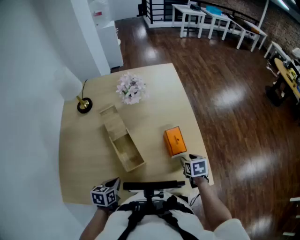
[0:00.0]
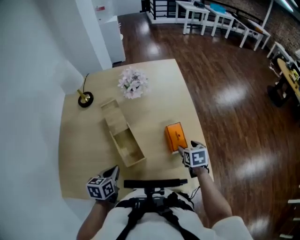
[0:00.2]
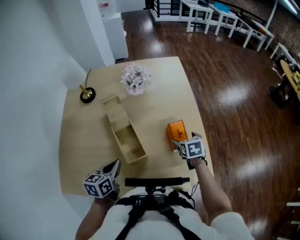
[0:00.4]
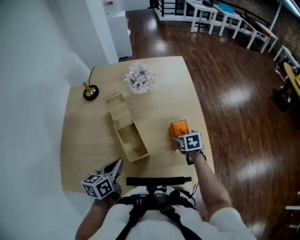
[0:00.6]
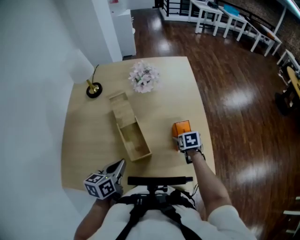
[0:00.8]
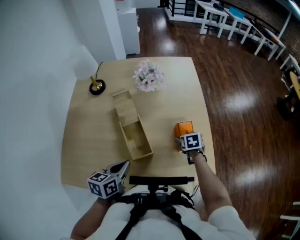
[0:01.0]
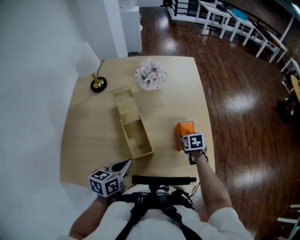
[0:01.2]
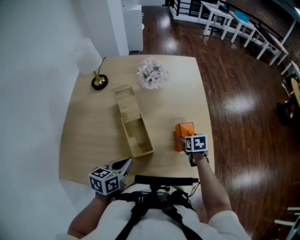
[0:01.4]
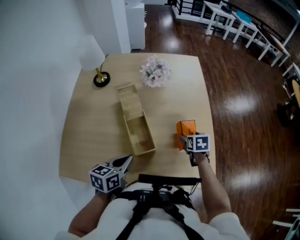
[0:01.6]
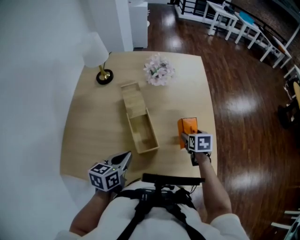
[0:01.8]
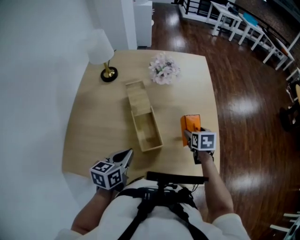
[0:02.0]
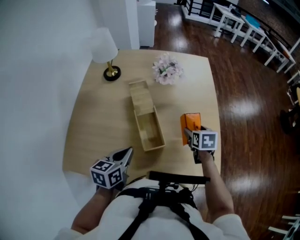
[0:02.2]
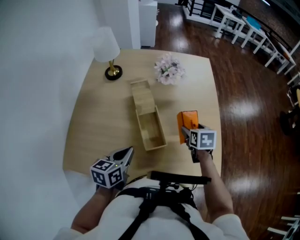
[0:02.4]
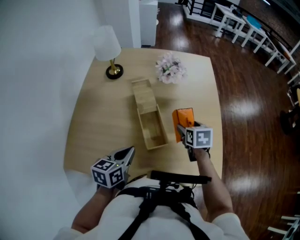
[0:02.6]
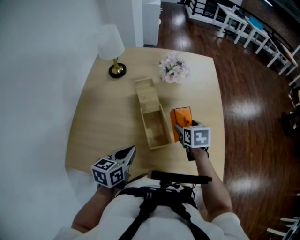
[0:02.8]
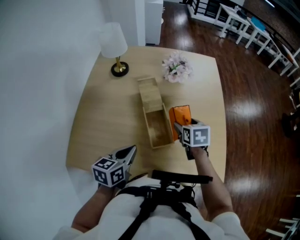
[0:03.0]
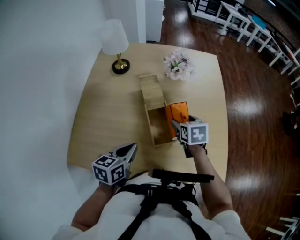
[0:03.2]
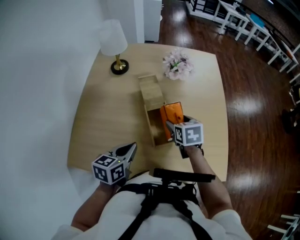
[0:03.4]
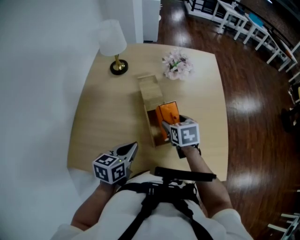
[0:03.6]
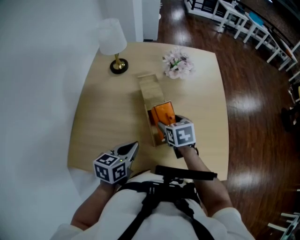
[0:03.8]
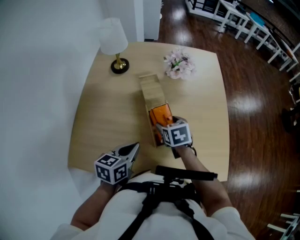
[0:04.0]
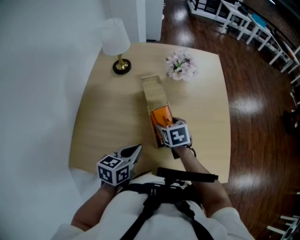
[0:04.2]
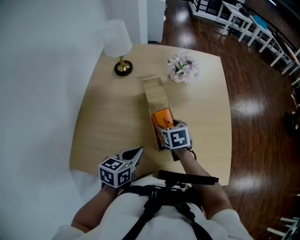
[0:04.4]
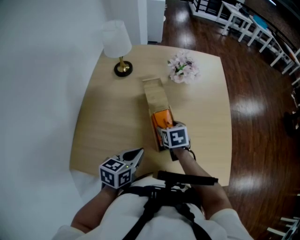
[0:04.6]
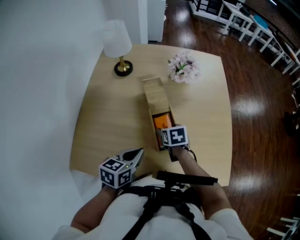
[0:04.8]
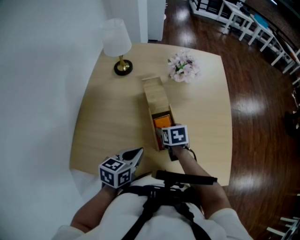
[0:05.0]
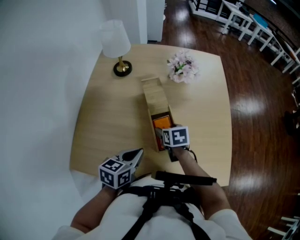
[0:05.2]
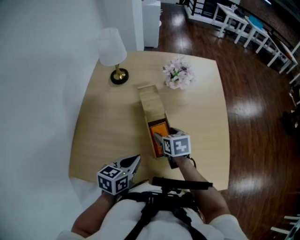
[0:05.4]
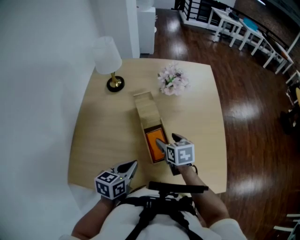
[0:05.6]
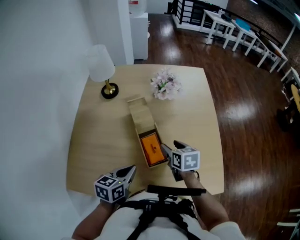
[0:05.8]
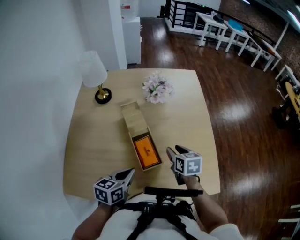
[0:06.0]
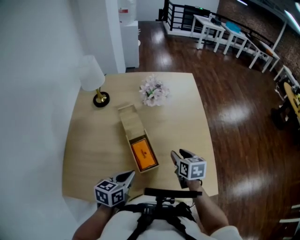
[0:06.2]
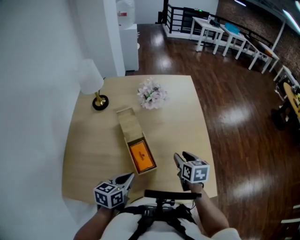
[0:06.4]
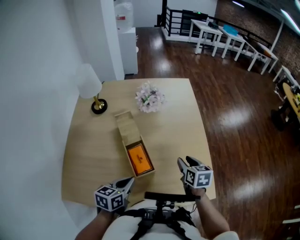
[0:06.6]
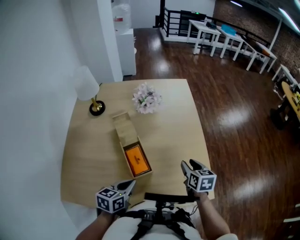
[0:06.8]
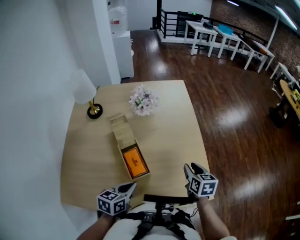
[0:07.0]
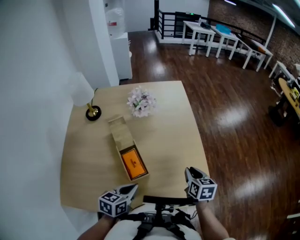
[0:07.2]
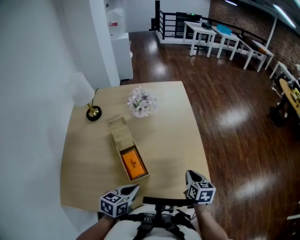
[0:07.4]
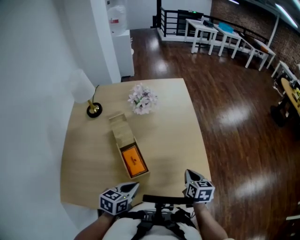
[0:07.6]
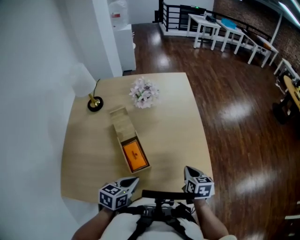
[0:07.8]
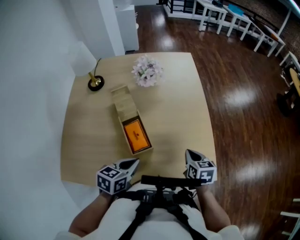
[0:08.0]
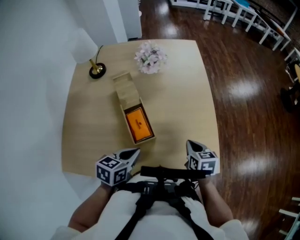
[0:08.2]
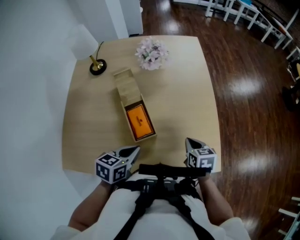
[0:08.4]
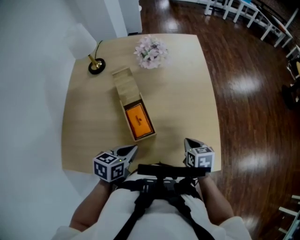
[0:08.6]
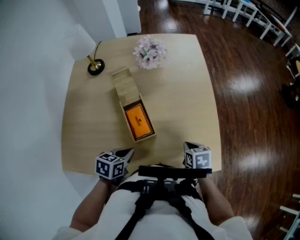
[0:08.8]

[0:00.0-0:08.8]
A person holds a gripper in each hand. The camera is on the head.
0:00.0 to 0:01.4: The left gripper shifts approximately 10 cm upward. The right gripper goes about 10 cm forward and to the left, and opens up.
0:01.4 to 0:03.0: The left gripper shifts about 5 cm to the left; the right gripper travels to the left and upward by roughly 20 cm.
0:03.0 to 0:04.4: The right gripper is displaced to the left by some 10 cm.
0:04.4 to 0:05.8: The right gripper travels to the right by approximately 10 cm.
0:05.8 to 0:07.4: The right gripper is displaced to the right by roughly 20 cm, and closes its fingers; the left gripper is displaced to the right by some 10 cm.
0:07.4 to 0:08.8: The right gripper travels downward by some 10 cm, and turns by roughly 20 degrees. The left gripper goes roughly 10 cm downward and to the left.

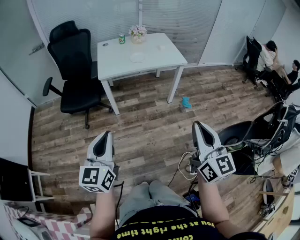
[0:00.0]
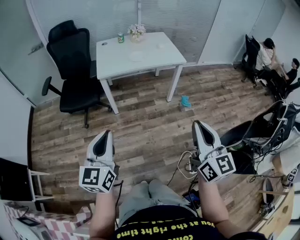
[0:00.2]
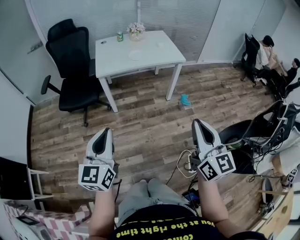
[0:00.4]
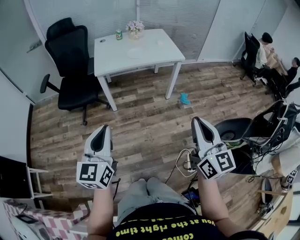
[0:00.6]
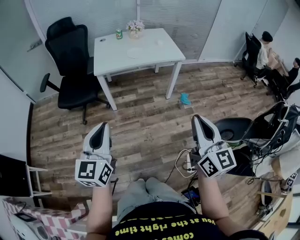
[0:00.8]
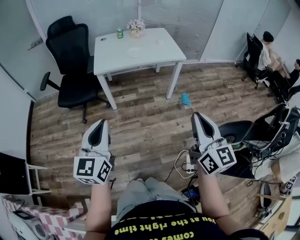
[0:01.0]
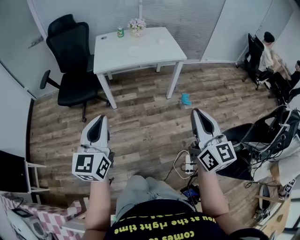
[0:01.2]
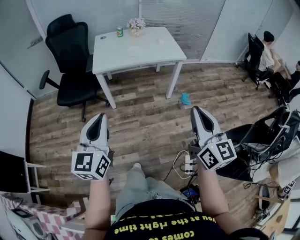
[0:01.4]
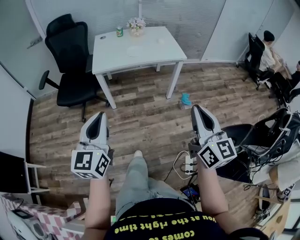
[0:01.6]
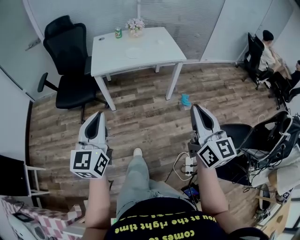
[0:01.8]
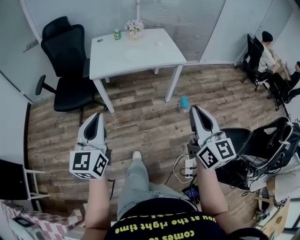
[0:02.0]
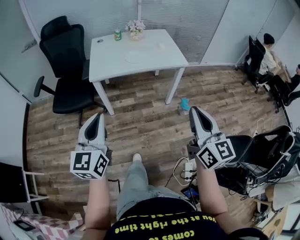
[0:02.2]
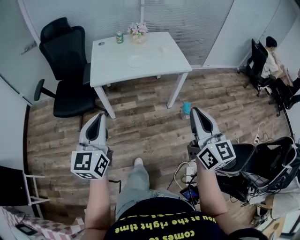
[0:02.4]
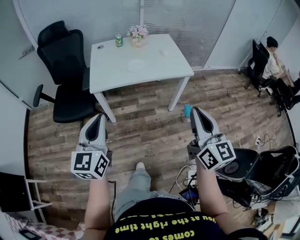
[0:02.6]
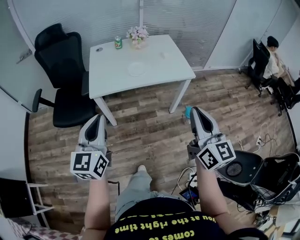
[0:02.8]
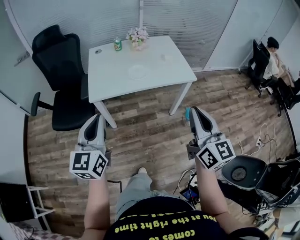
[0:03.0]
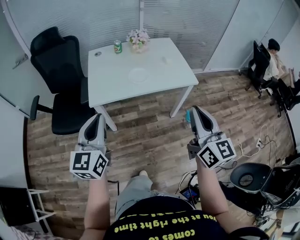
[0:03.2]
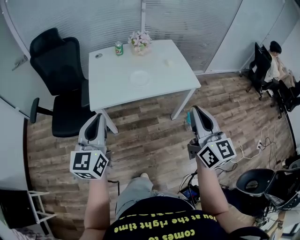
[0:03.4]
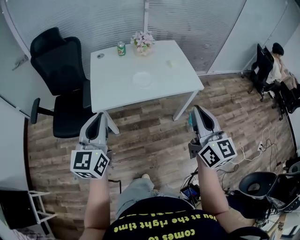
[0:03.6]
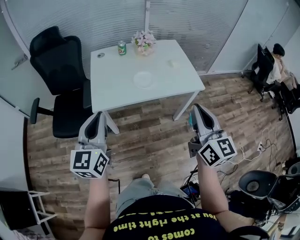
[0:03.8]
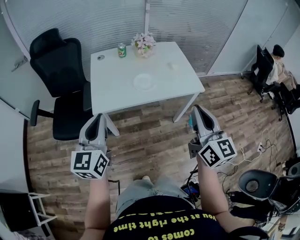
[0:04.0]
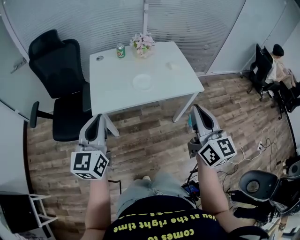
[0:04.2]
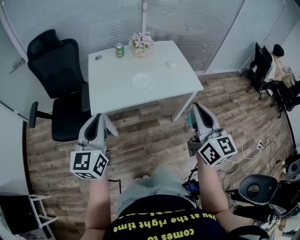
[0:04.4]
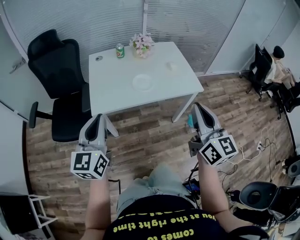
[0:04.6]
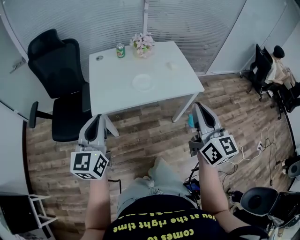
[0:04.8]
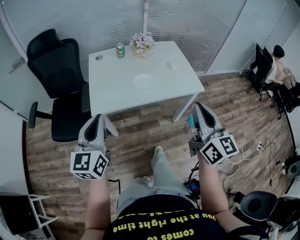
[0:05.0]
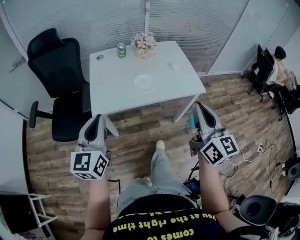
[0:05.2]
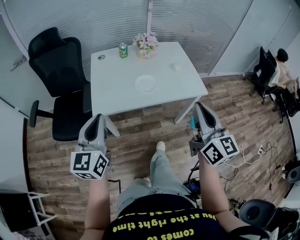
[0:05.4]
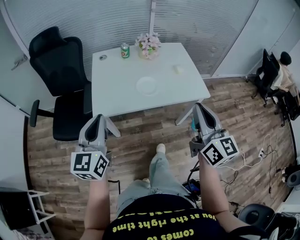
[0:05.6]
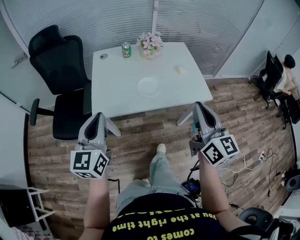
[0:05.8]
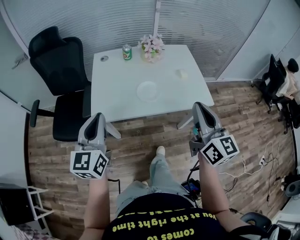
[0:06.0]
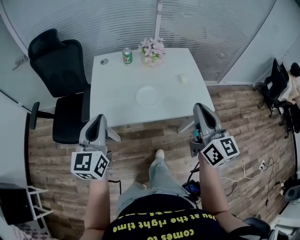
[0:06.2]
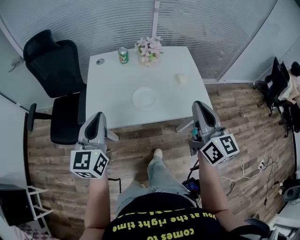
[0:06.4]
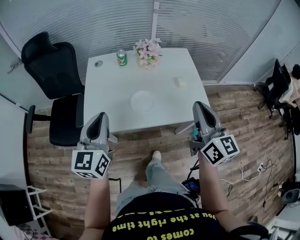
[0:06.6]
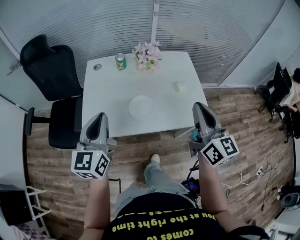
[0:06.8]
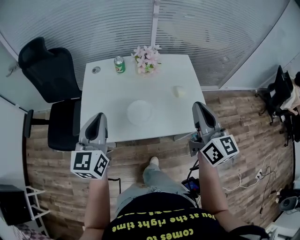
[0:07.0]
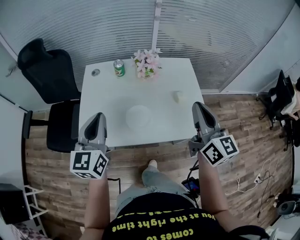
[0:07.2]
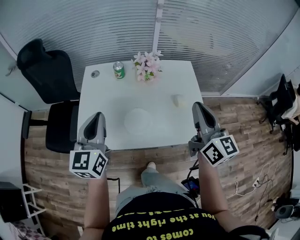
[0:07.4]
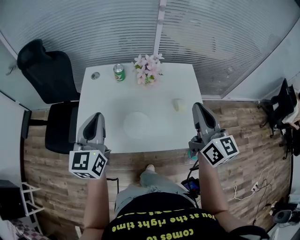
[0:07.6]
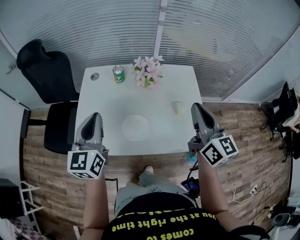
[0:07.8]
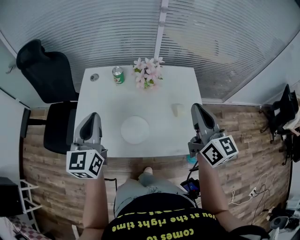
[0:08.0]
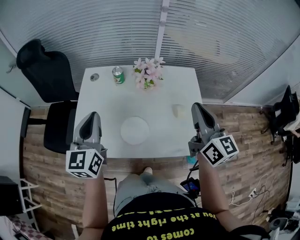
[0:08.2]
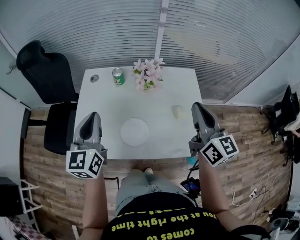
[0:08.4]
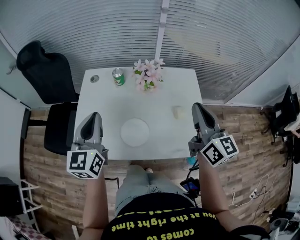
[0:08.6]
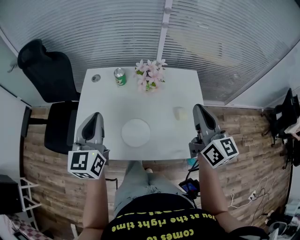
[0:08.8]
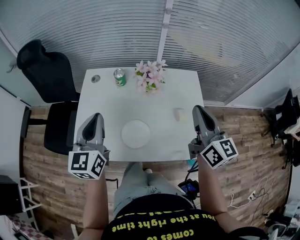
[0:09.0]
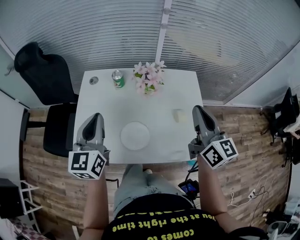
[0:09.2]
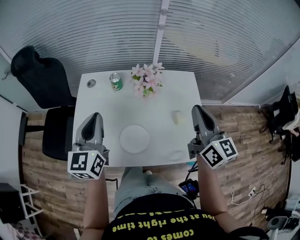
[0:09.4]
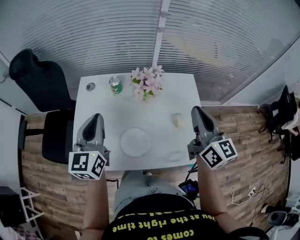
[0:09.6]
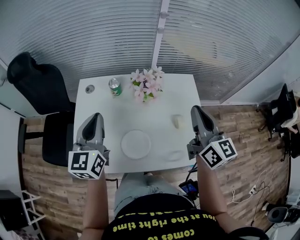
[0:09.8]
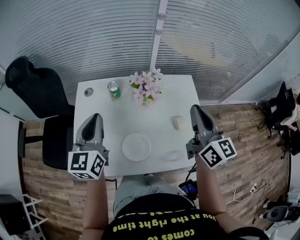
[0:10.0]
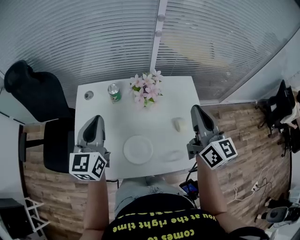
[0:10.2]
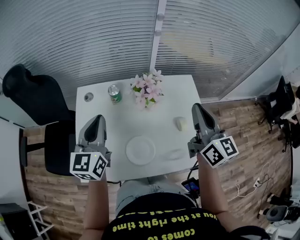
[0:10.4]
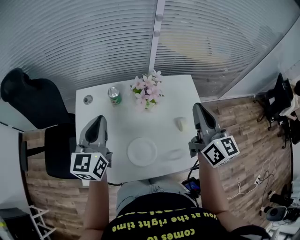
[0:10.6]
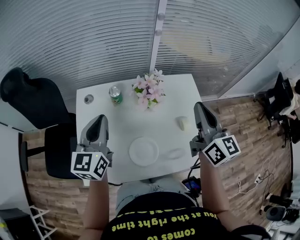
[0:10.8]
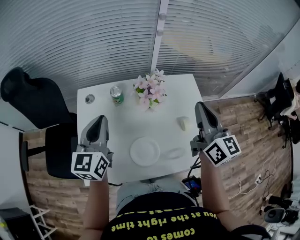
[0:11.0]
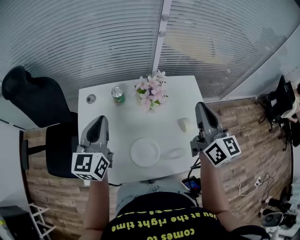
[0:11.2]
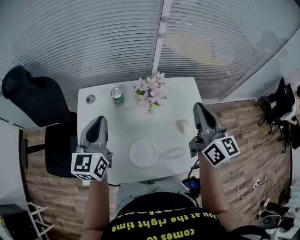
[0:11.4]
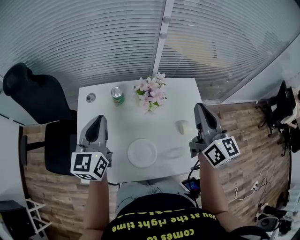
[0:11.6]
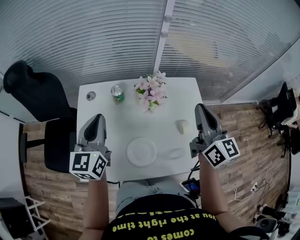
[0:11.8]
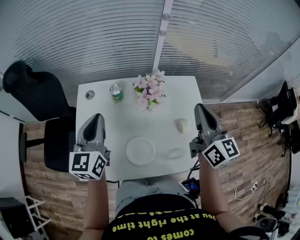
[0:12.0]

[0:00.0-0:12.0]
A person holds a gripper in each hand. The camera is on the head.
0:00.0 to 0:01.6: The right gripper goes roughly 10 cm forward and to the right, while the left gripper heads to the right and forward, covering about 10 cm.
0:01.6 to 0:03.0: Both grippers travel together forward, roughly 25 cm.
0:03.0 to 0:04.4: The grippers both shift forward by approximately 10 cm.
0:04.4 to 0:06.0: The two grippers go roughly 10 cm forward.
0:06.0 to 0:07.6: Both grippers travel together forward and to the right, approximately 25 cm.
0:07.6 to 0:09.0: The right gripper heads forward, covering some 5 cm.
0:09.0 to 0:10.4: The left gripper heads forward, covering roughly 10 cm. Meanwhile the right gripper is displaced forward by some 5 cm.
0:10.4 to 0:12.0: There are only small adjustments of the grippers.

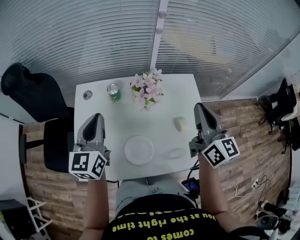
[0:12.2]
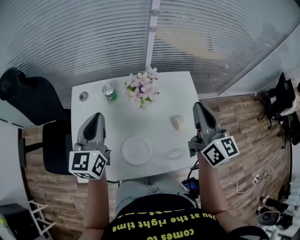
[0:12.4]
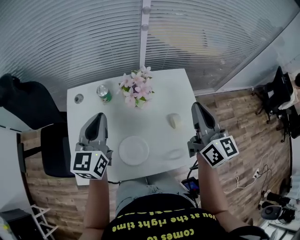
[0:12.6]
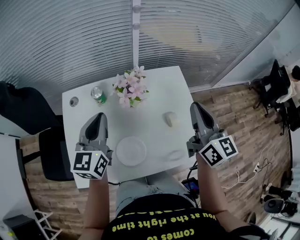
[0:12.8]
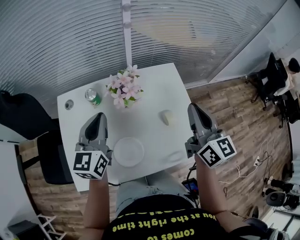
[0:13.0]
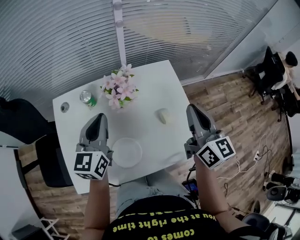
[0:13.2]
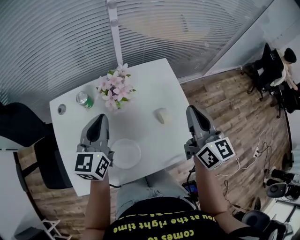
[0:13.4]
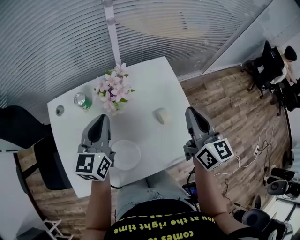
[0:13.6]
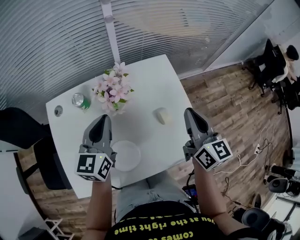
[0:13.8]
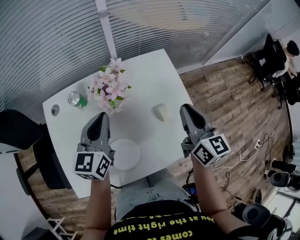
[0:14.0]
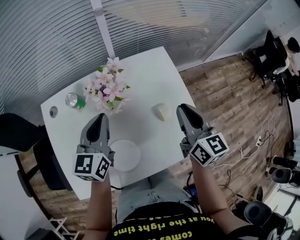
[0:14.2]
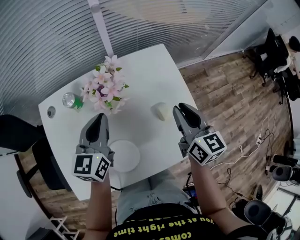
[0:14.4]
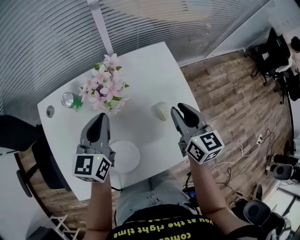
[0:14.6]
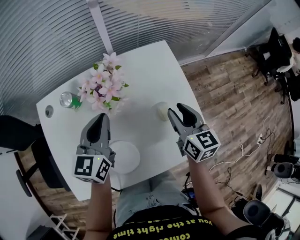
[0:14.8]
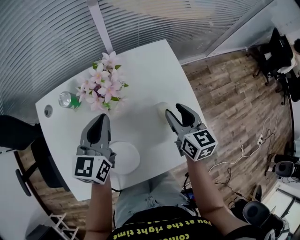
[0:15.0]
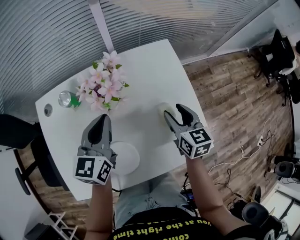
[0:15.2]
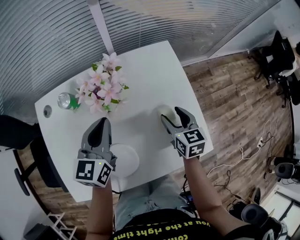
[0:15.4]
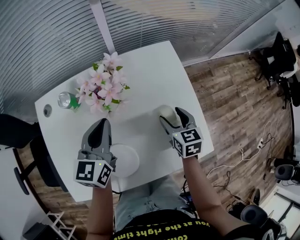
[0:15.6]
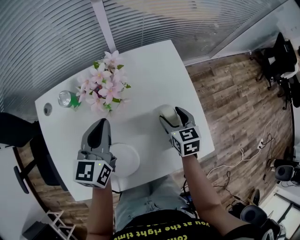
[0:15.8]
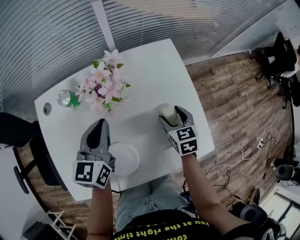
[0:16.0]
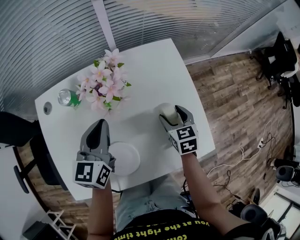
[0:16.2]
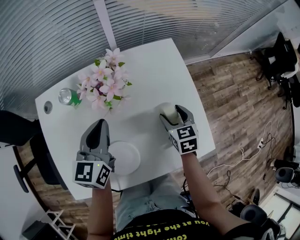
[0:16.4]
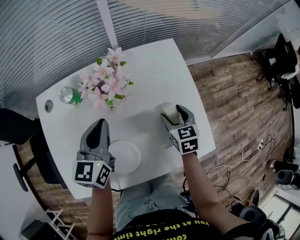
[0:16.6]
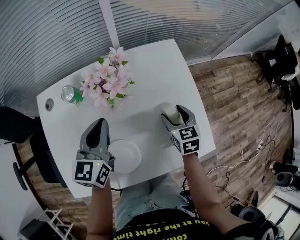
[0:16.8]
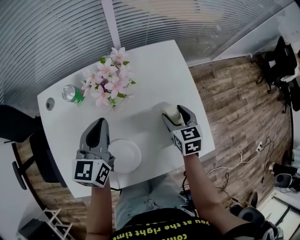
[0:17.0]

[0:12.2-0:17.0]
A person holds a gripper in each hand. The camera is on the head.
0:12.2 to 0:13.8: The right gripper moves downward and to the right, approximately 10 cm, while the left gripper heads to the right, downward and forward, covering approximately 15 cm.
0:13.8 to 0:15.4: The right gripper travels downward by about 20 cm, rotates about 30 degrees, and opens up; the left gripper travels downward by approximately 5 cm.
0:15.4 to 0:17.0: The grippers stay close to where they were, moving slightly.
